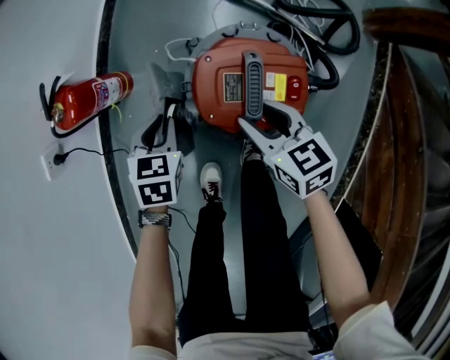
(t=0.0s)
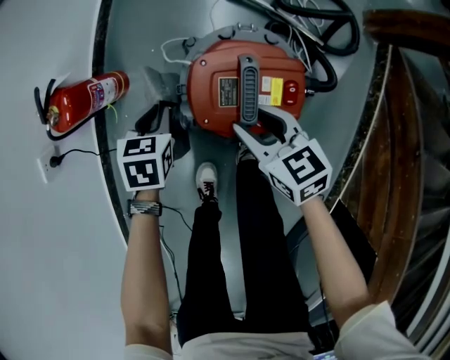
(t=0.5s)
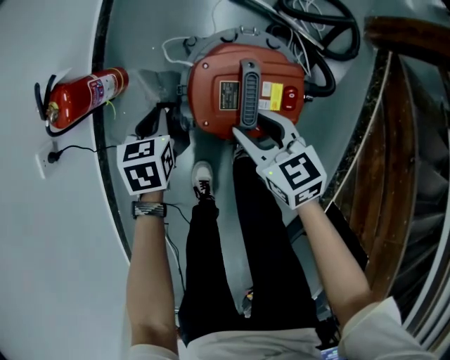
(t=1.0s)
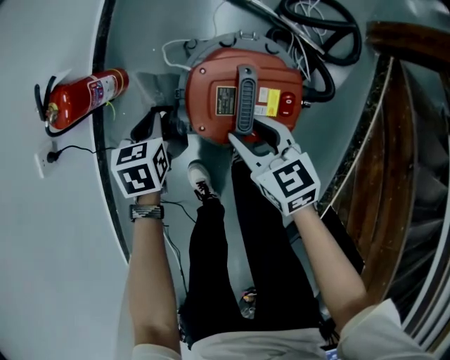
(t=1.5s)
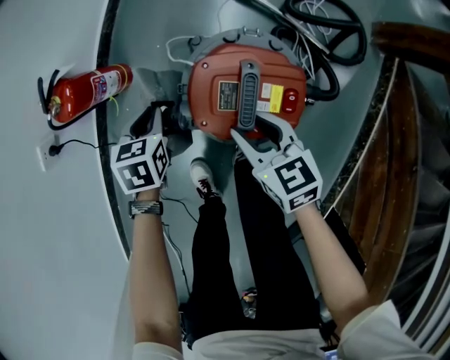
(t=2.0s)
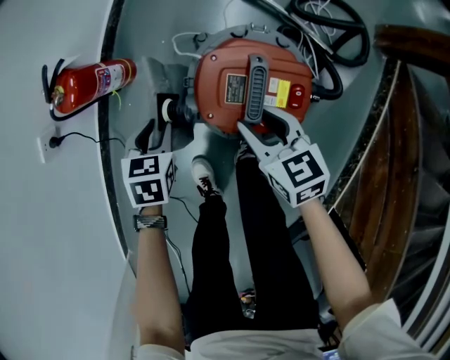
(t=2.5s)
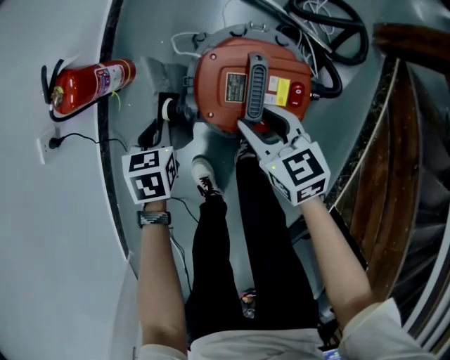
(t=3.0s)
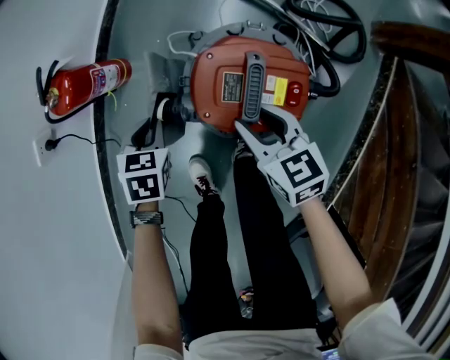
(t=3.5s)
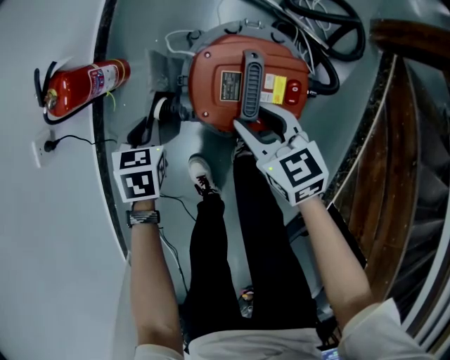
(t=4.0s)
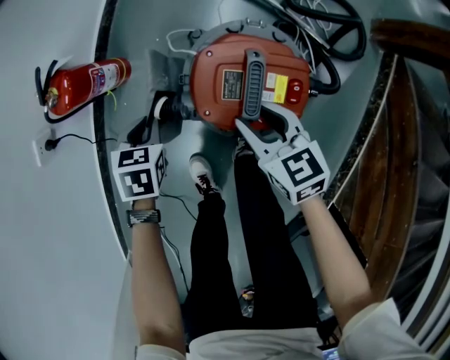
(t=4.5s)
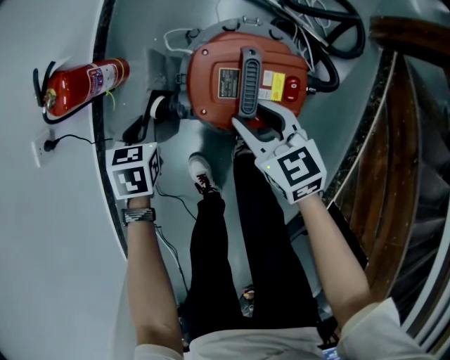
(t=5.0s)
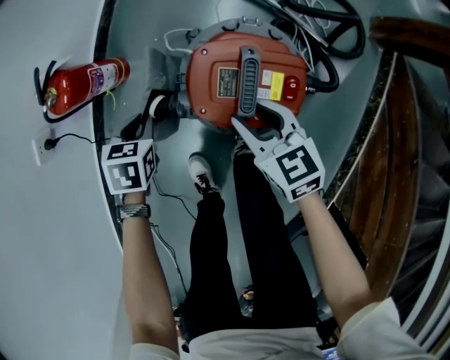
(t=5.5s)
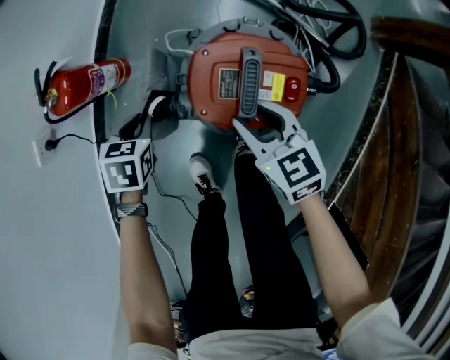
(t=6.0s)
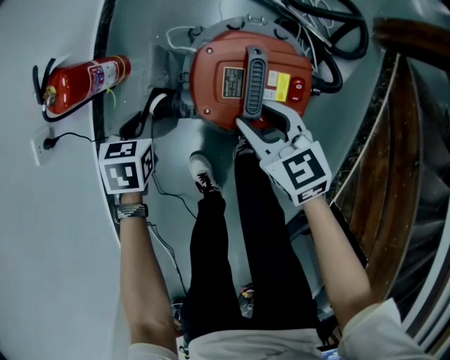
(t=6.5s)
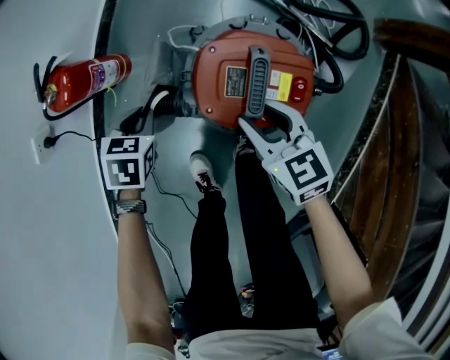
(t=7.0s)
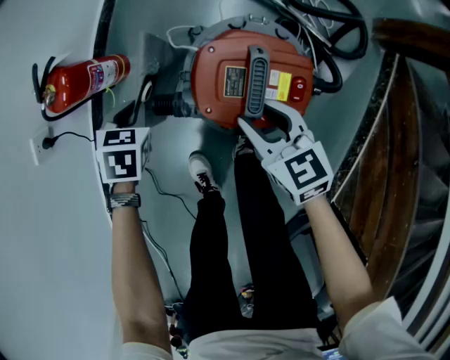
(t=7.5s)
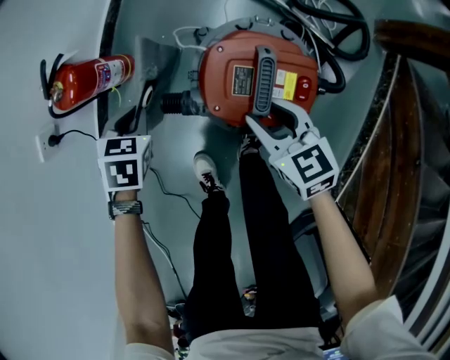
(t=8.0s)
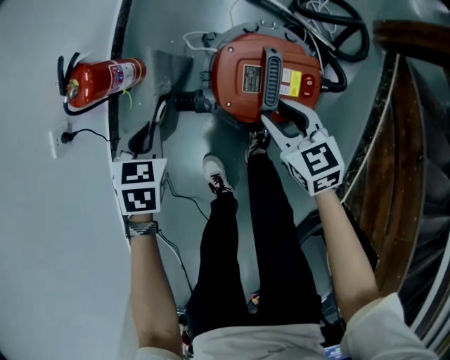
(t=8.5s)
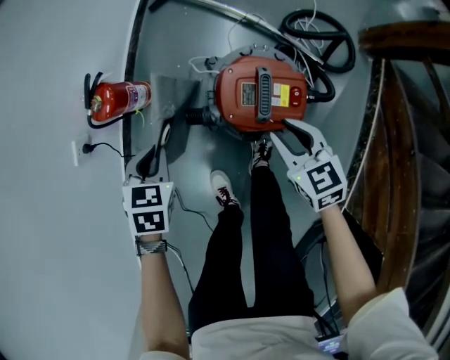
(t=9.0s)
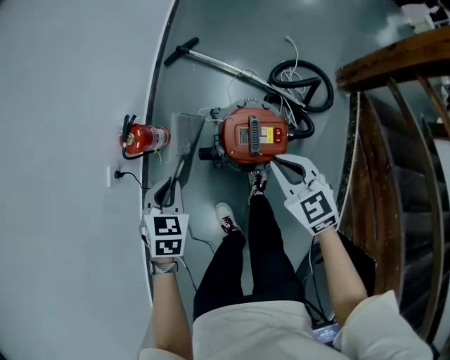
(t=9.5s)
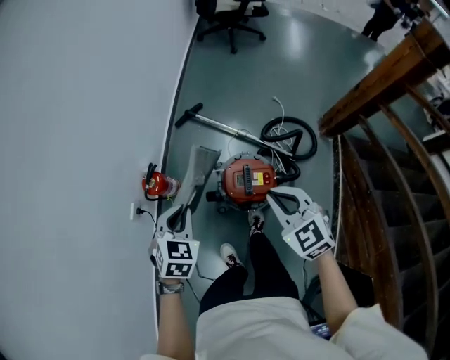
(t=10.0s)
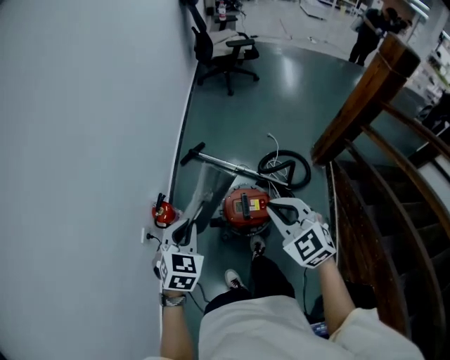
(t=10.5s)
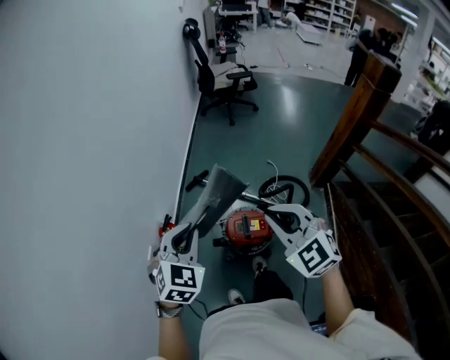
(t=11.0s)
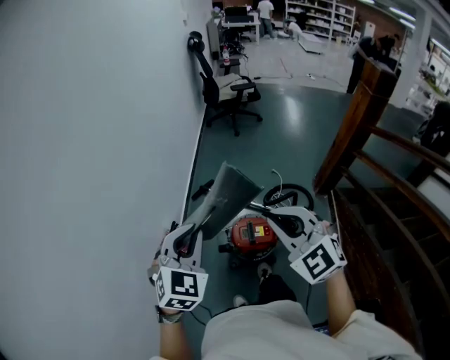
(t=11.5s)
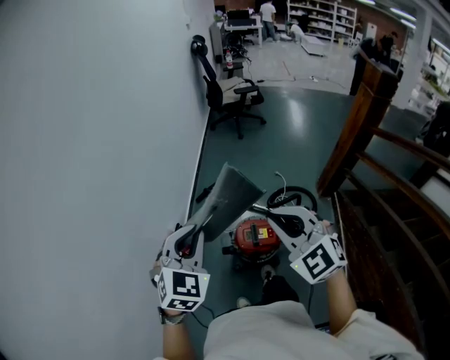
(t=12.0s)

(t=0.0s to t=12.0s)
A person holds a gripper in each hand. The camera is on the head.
t=0.0s - t=4.0s: The grippers move only a little.
t=4.0s - t=6.0s: The two grippers keep their place.
t=6.0s - t=8.0s: The grippers move only a little.
t=8.0s - t=10.0s: Both grippers travel together upward, approximately 40 cm. The left gripper rotates about 30 degrees. The right gripper rotates some 30 degrees, and closes its fingers.
t=10.0s - t=12.0s: Both grippers move upward, roughly 30 cm. The right gripper changes its angle by roughly 30 degrees. The left gripper rotates approximately 30 degrees.

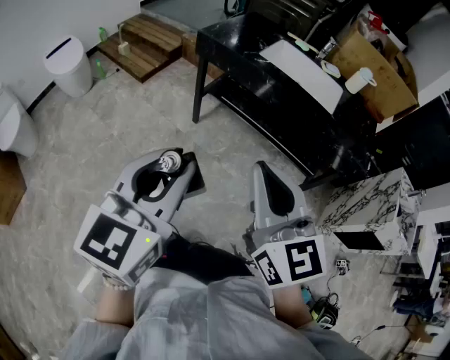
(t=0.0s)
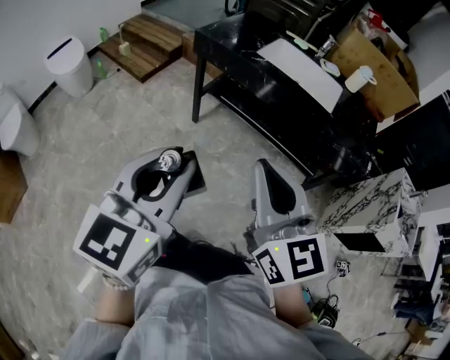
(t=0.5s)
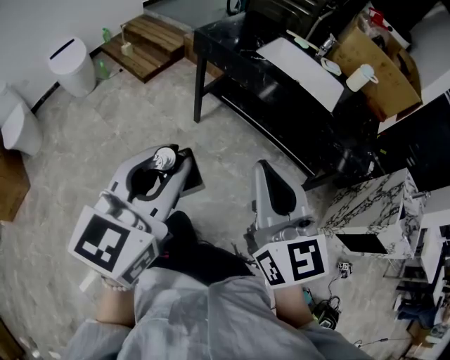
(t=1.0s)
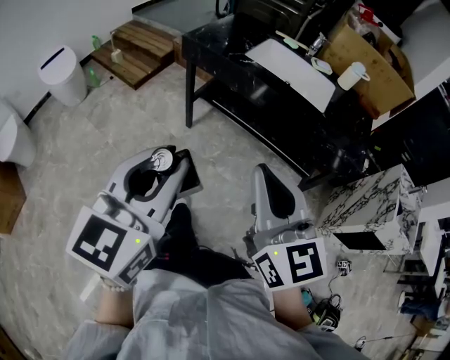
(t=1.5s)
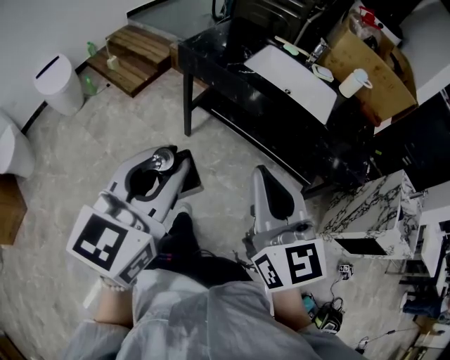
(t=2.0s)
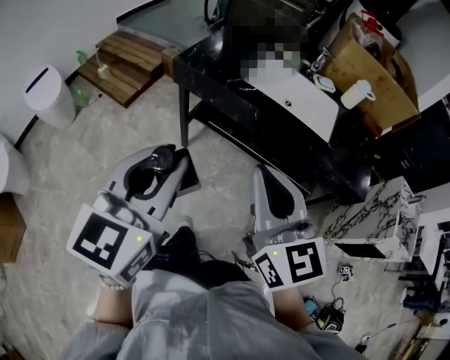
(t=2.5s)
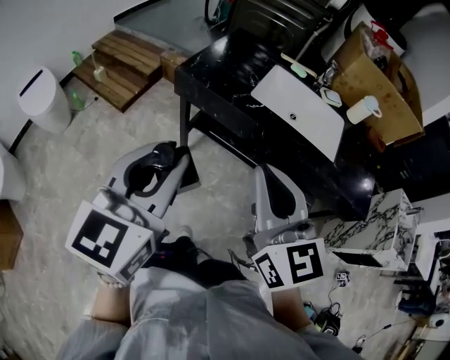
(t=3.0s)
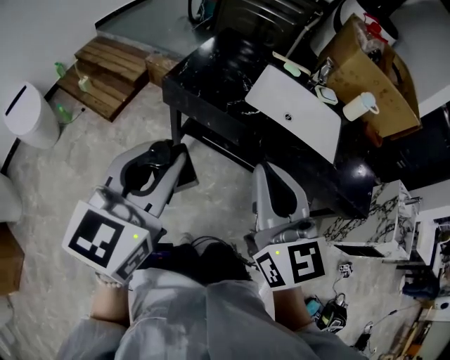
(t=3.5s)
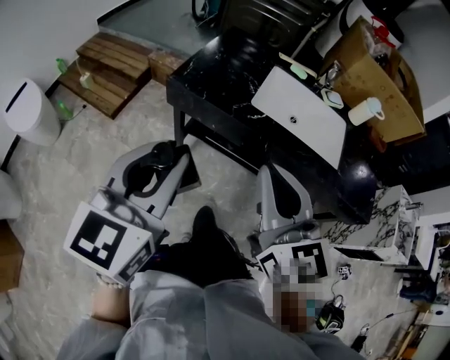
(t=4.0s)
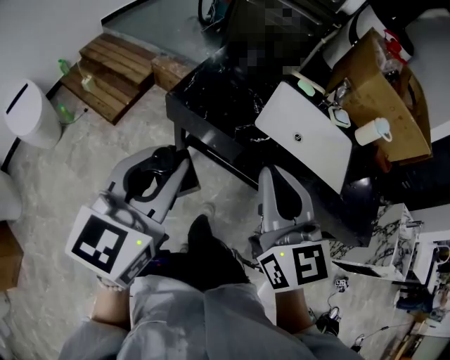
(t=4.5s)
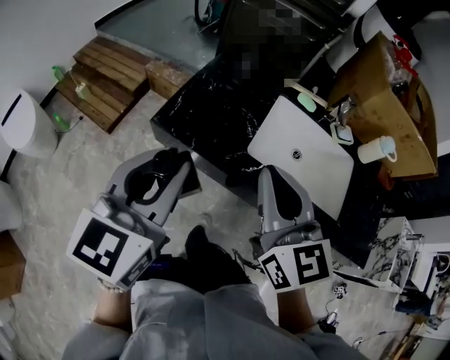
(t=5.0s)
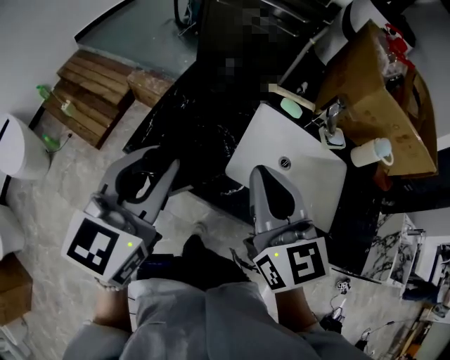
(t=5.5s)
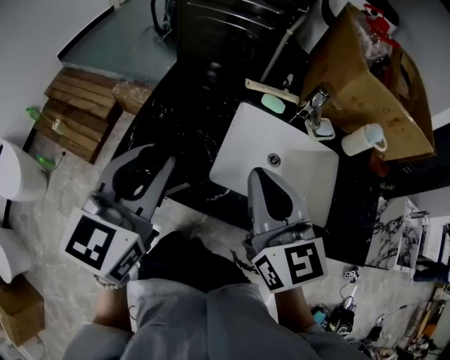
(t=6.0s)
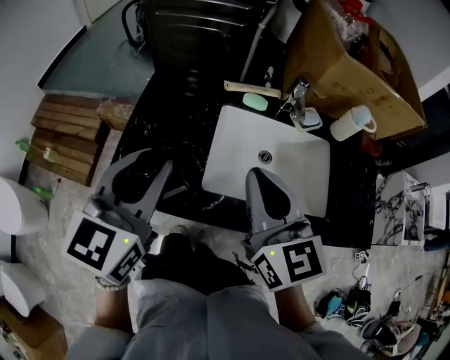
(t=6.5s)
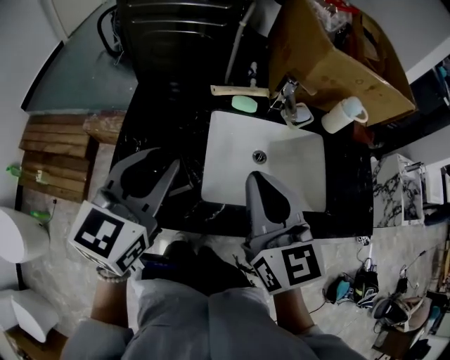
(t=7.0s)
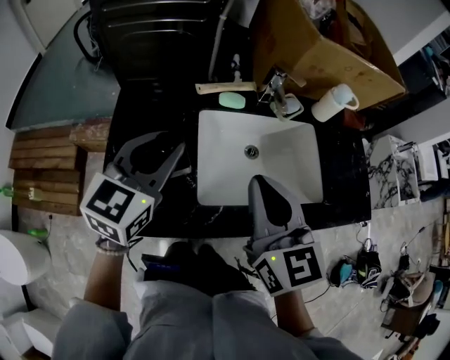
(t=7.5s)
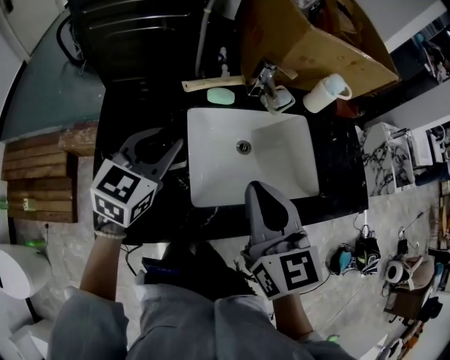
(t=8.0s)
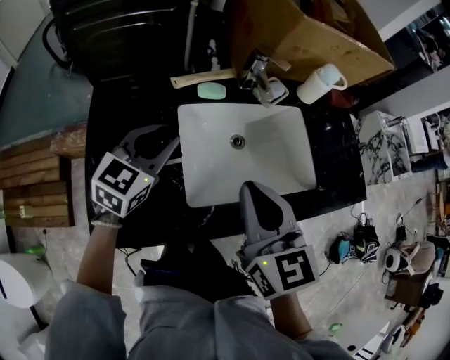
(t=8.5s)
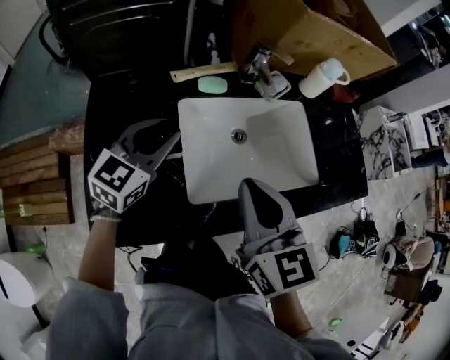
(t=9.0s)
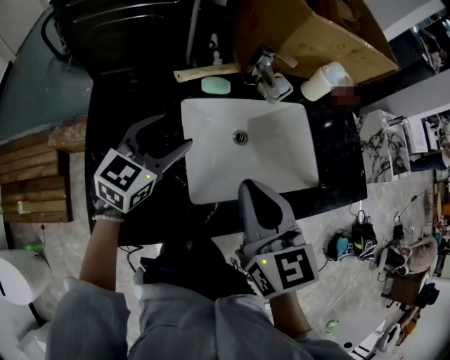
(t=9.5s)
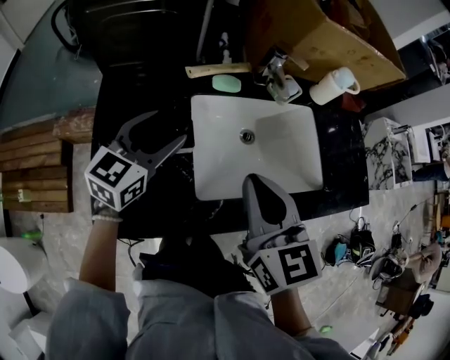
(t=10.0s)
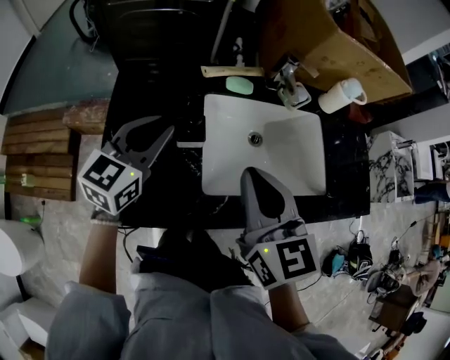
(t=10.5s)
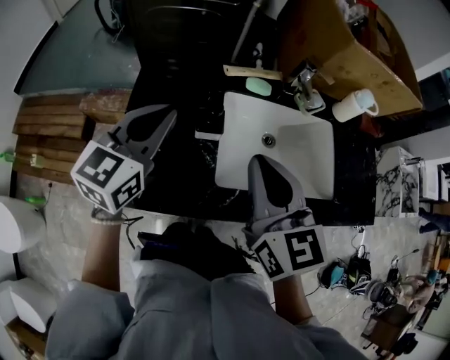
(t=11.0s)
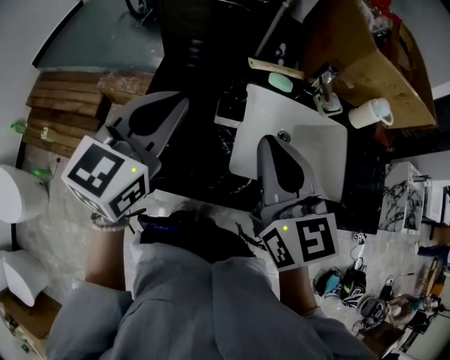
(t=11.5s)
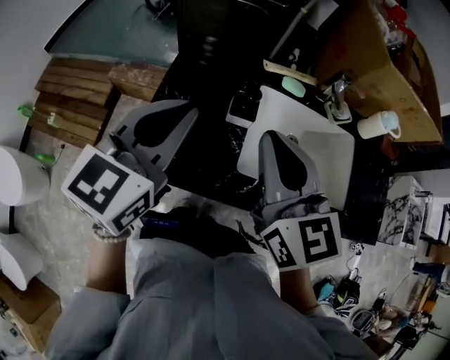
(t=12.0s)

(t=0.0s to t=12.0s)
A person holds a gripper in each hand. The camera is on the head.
t=0.0s - t=2.0s: Both grippers move forward, approximately 10 cm.
t=2.0s - t=4.0s: Both grippers move forward and to the left, approximately 30 cm.
t=4.0s - t=6.0s: Both grippers move forward, roughly 30 cm.
t=6.0s - t=8.0s: The right gripper changes place by approximately 5 cm, and changes its angle by roughly 30 degrees; the left gripper shifts by roughly 20 cm, and swivels some 40 degrees.
t=8.0s - t=10.0s: The left gripper opens up.
t=10.0s - t=12.0s: The left gripper heads backward, upward and to the left, covering some 20 cm, turns by about 20 degrees, and closes its fingers. Meanwhile the right gripper is displaced to the left and upward by some 10 cm, and turns by roughly 20 degrees.

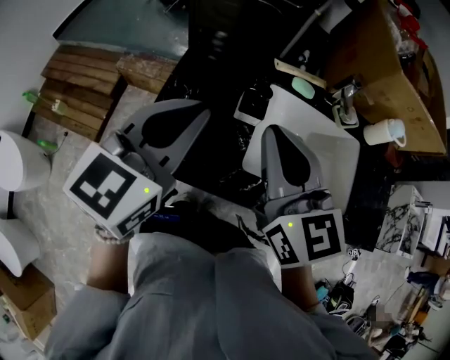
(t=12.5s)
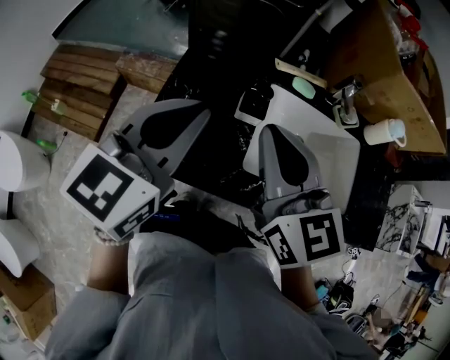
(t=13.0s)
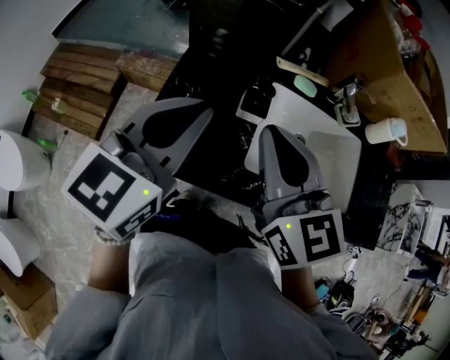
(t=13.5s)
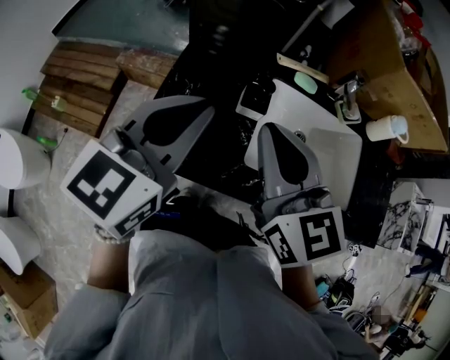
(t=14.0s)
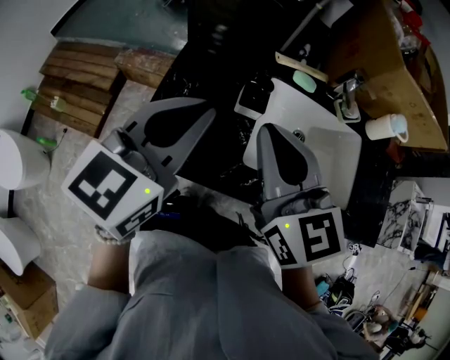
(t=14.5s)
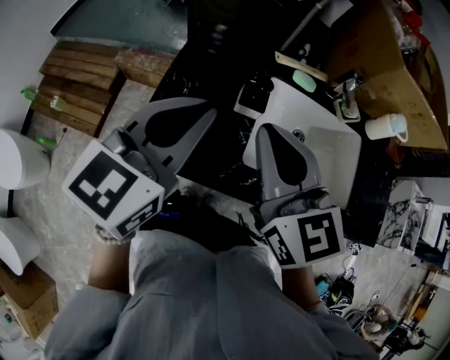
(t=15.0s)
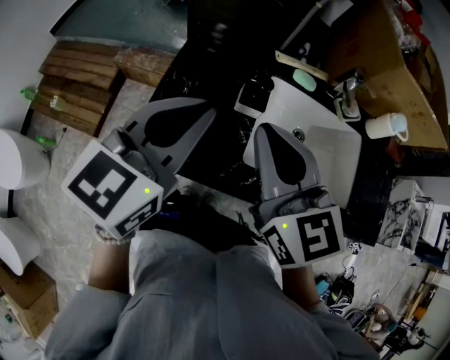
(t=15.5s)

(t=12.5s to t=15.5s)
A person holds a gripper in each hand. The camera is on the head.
t=12.5s - t=14.0s: Both grippers stay about where they are.
t=14.0s - t=15.5s: Both grippers stay about where they are.
